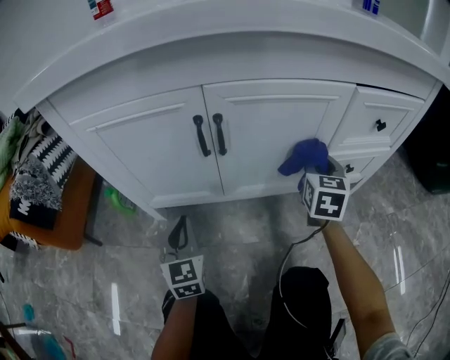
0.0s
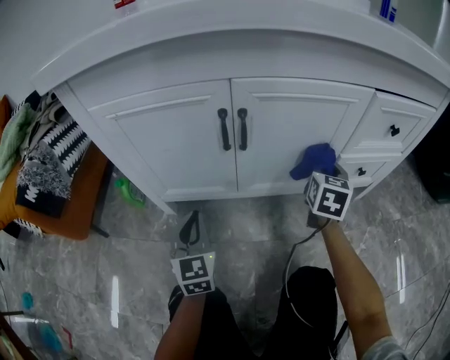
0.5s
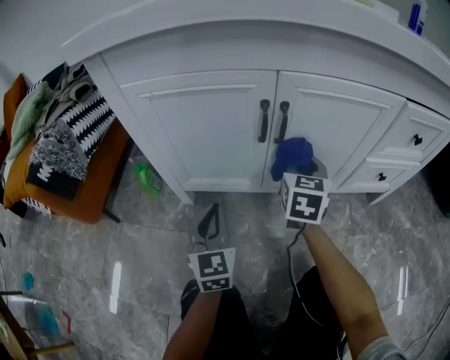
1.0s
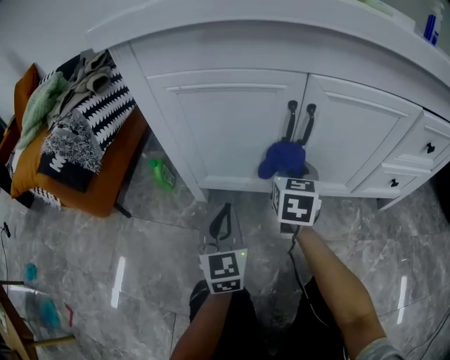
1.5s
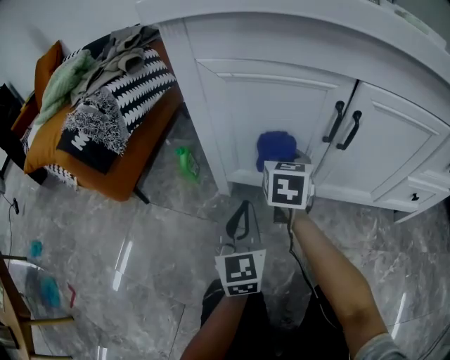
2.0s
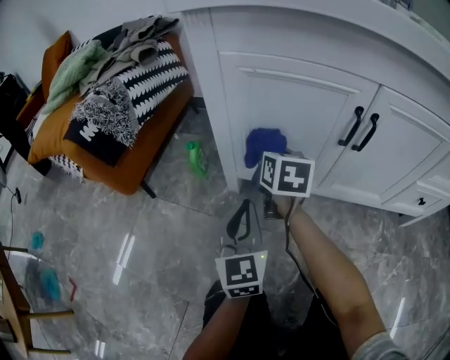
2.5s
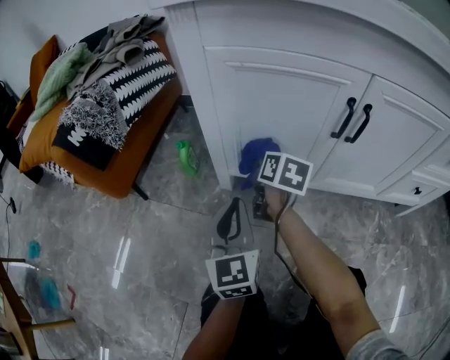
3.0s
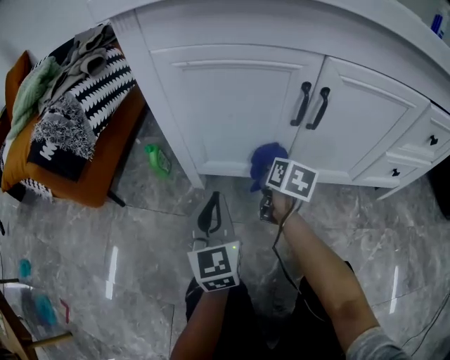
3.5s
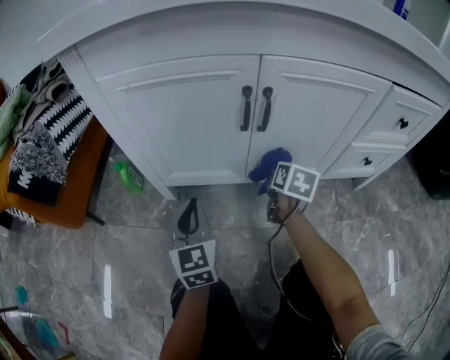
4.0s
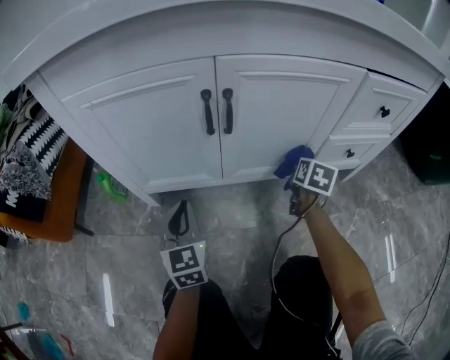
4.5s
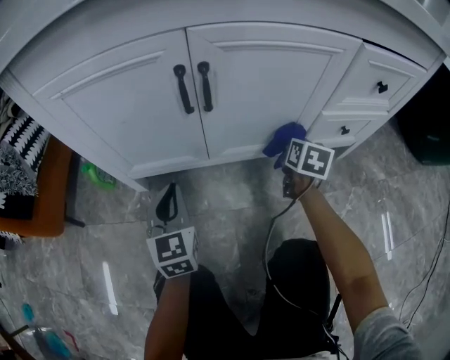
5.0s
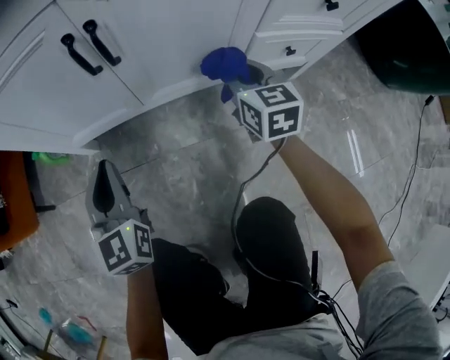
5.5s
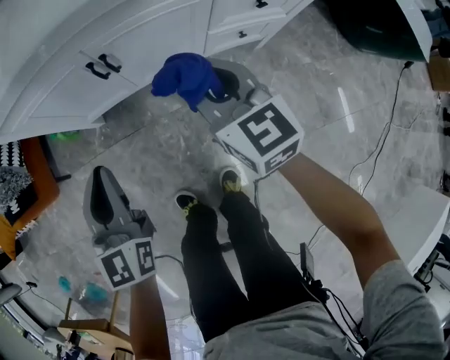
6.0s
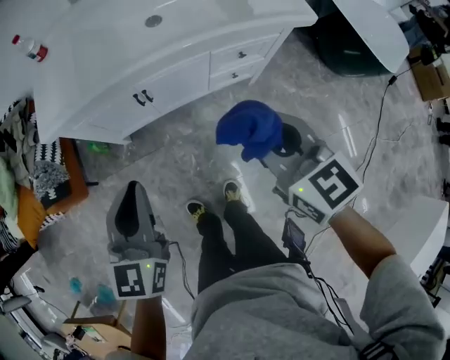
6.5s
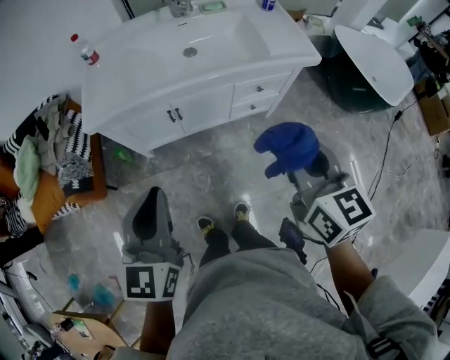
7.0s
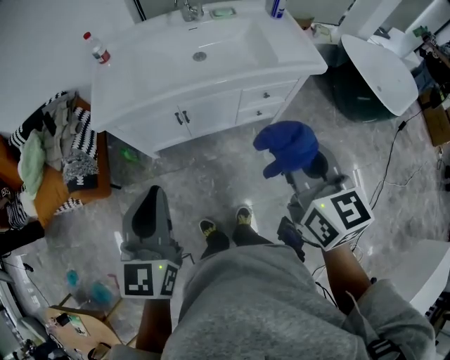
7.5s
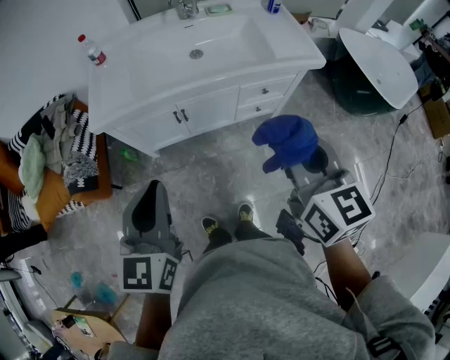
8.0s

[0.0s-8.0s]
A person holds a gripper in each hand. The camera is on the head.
0.0s to 2.0s: The left gripper travels to the left by about 10 cm. The right gripper is displaced to the left by roughly 35 cm, and turns by some 20 degrees.
2.0s to 4.0s: The right gripper travels to the right and downward by approximately 25 cm, and changes its angle by approximately 30 degrees; the left gripper changes place by roughly 5 cm.
4.0s to 6.0s: The right gripper is displaced upward and backward by some 40 cm, and swivels approximately 40 degrees; the left gripper moves upward, some 30 cm.
6.0s to 8.0s: The right gripper moves upward and backward, about 40 cm. Meanwhile the left gripper moves upward, roughly 35 cm.

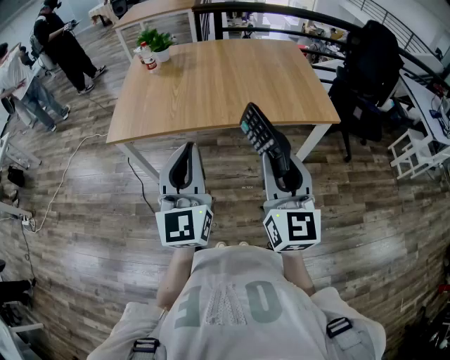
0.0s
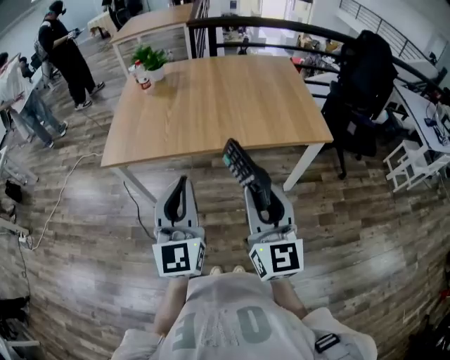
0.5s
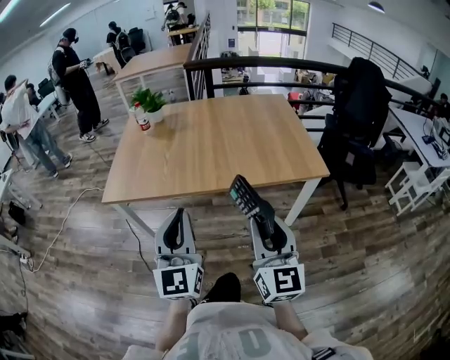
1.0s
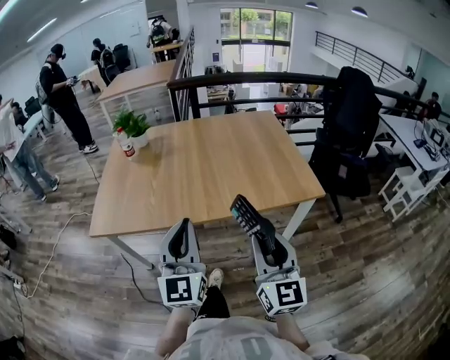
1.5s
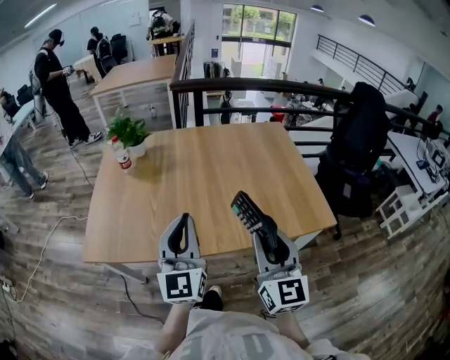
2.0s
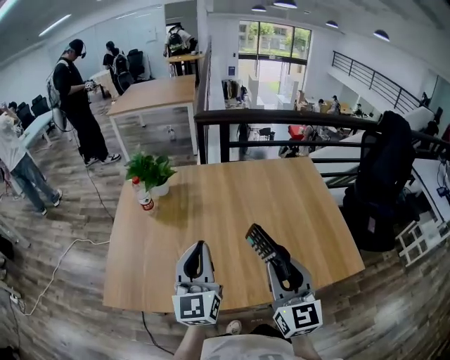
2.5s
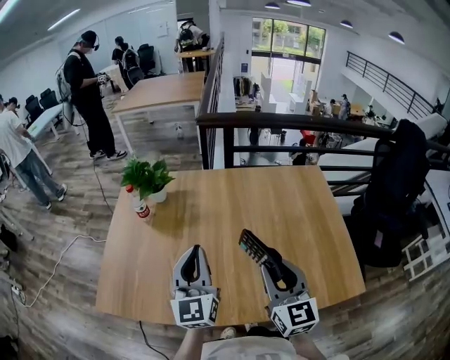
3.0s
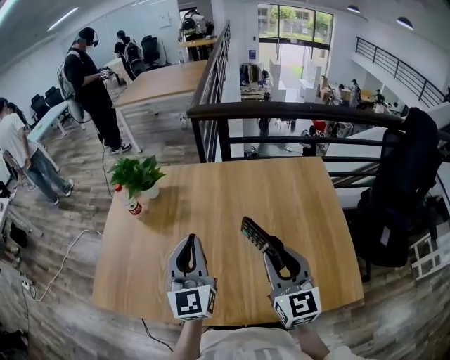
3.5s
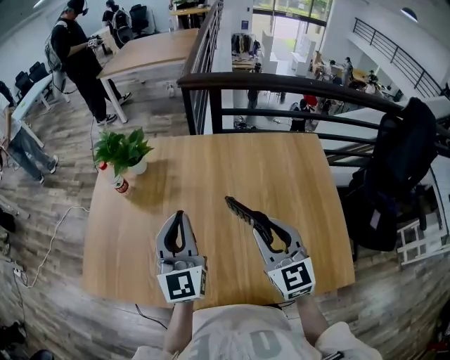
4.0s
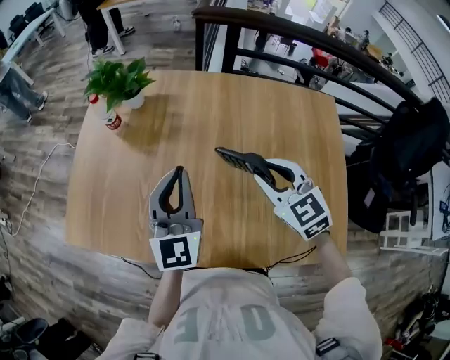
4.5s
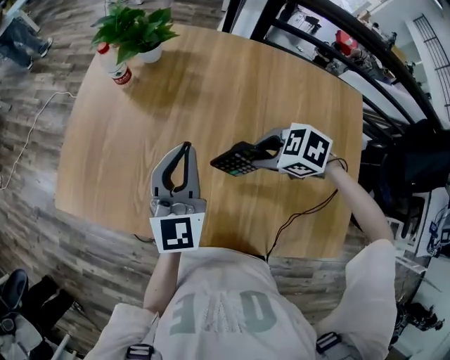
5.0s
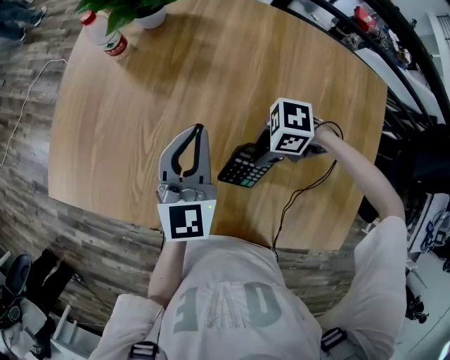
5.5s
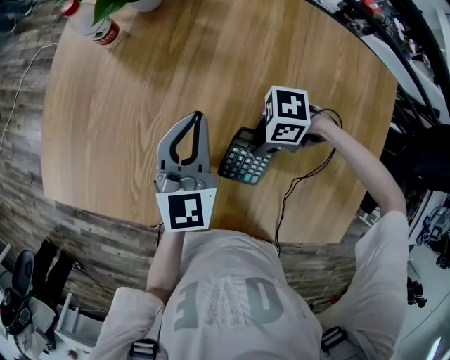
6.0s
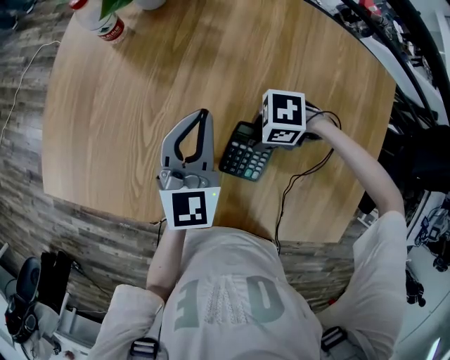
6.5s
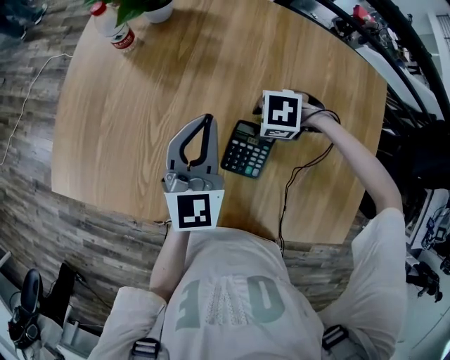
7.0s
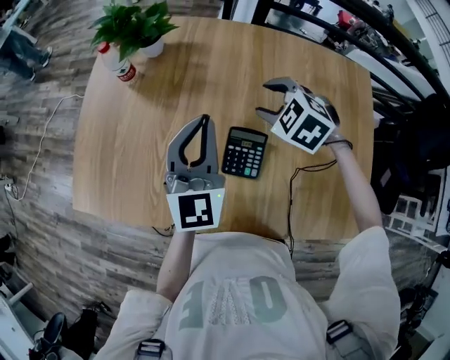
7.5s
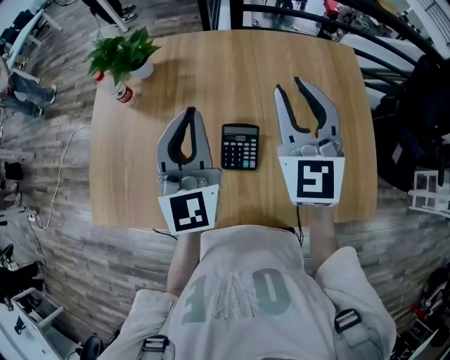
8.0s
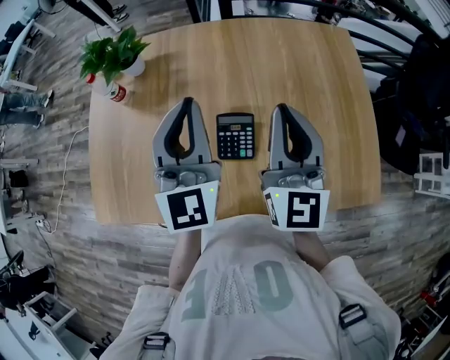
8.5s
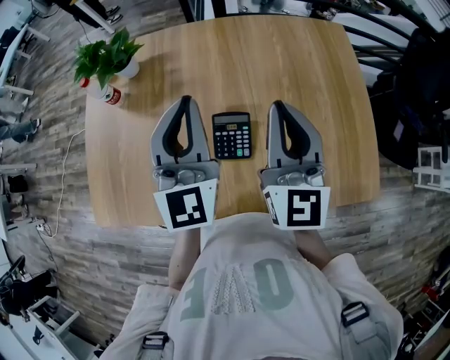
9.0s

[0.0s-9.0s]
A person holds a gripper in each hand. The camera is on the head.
0.0s to 2.0s: Both grippers travel together forward, roughly 30 cm.
2.0s to 4.5s: Both grippers travel together forward, roughly 30 cm. The right gripper points its fingers roughly 40 degrees further downward.
4.5s to 7.0s: The left gripper heads downward, covering approximately 10 cm. Meanwhile the right gripper goes some 20 cm downward, points its fingers about 40 degrees further downward, and opens.
7.0s to 9.0s: The right gripper heads upward, covering approximately 30 cm, angles its fingers upward, by approximately 80 degrees, and closes its fingers. The left gripper goes about 15 cm upward.

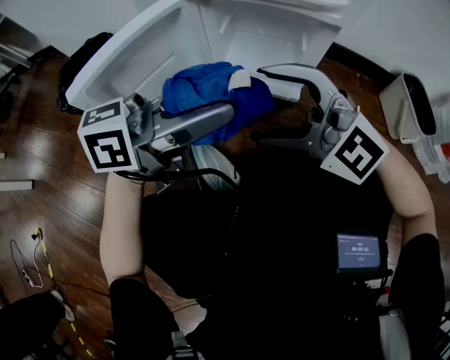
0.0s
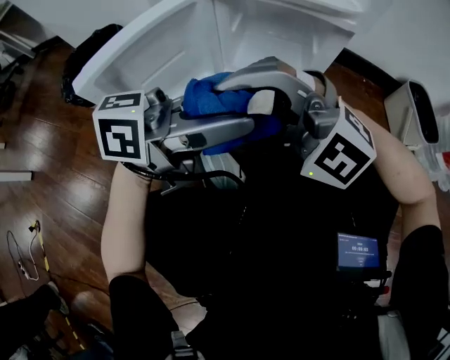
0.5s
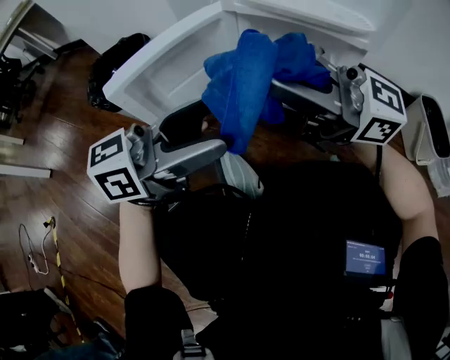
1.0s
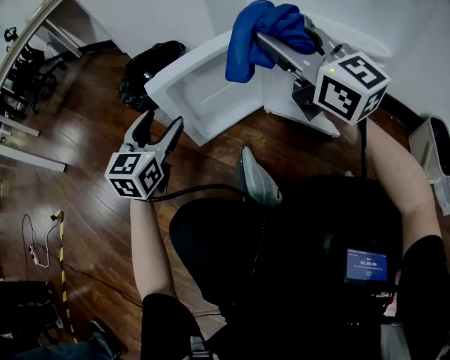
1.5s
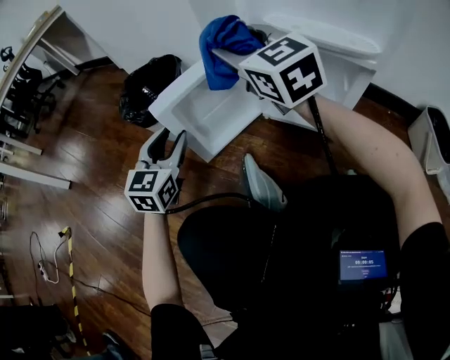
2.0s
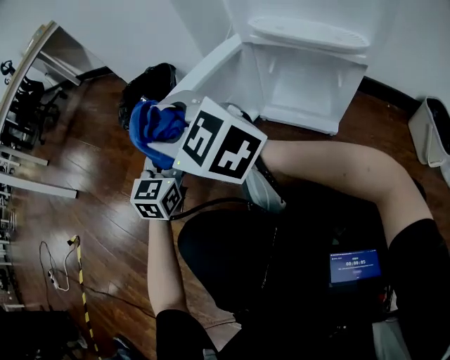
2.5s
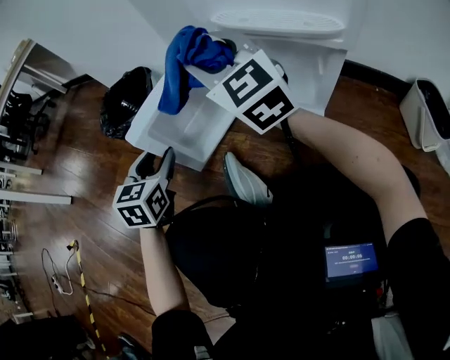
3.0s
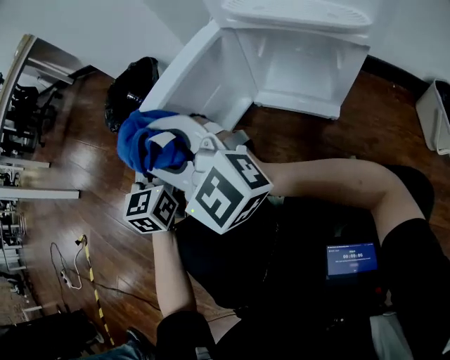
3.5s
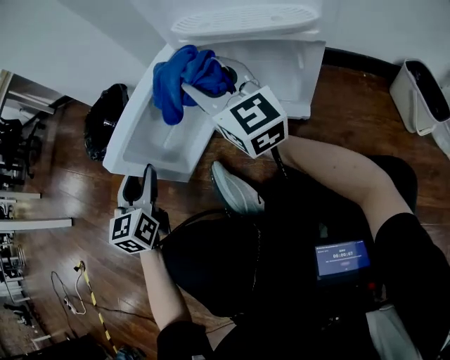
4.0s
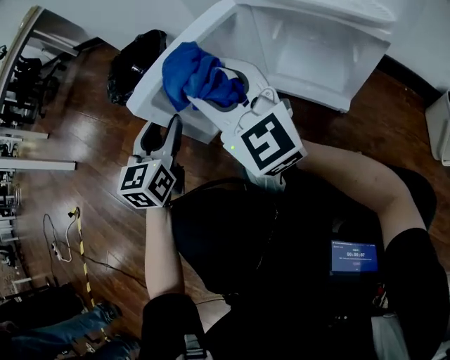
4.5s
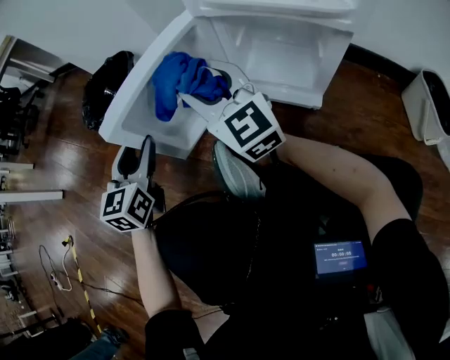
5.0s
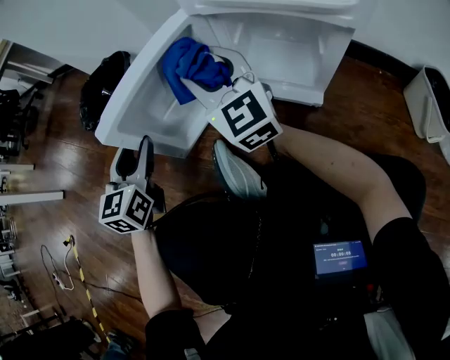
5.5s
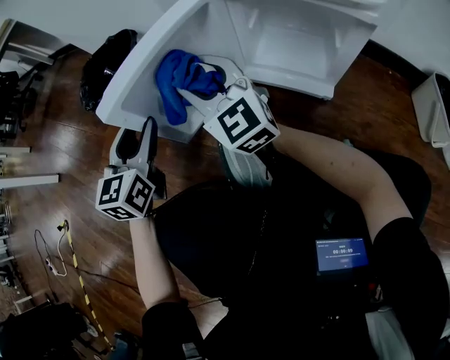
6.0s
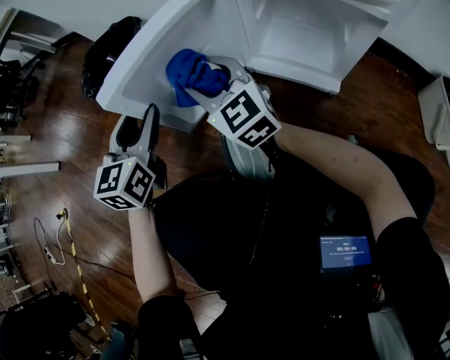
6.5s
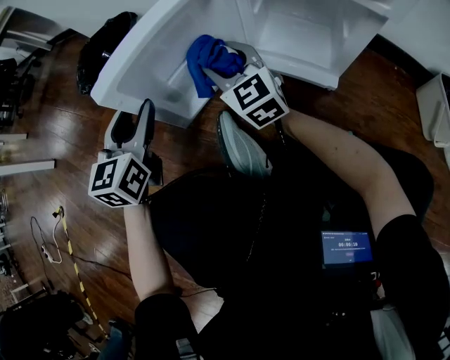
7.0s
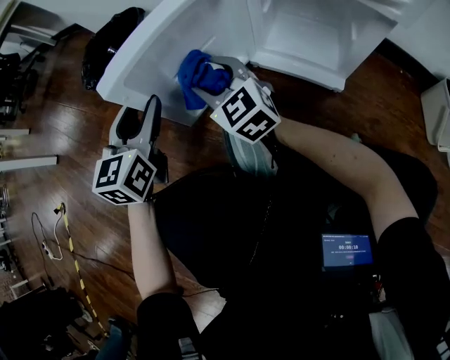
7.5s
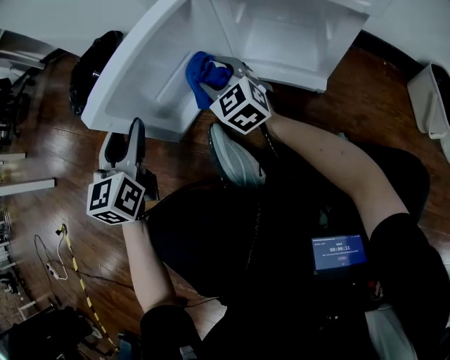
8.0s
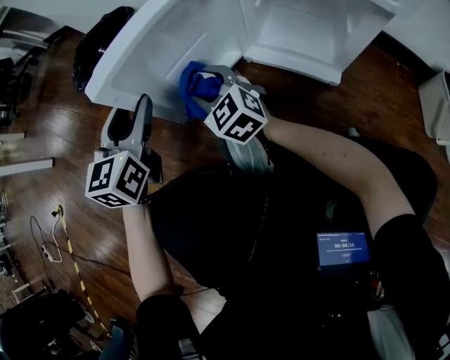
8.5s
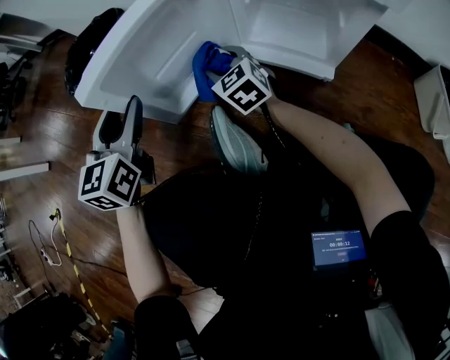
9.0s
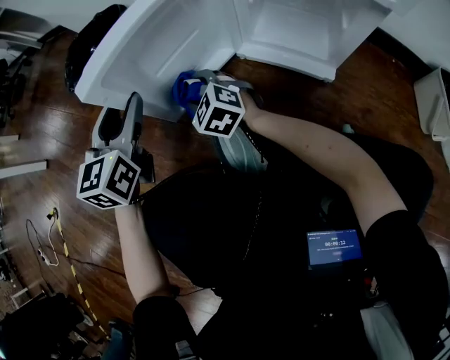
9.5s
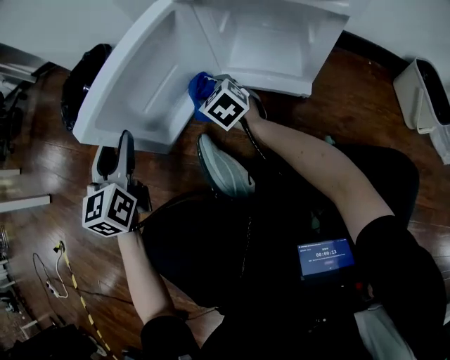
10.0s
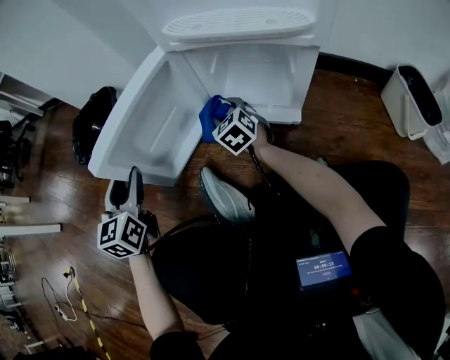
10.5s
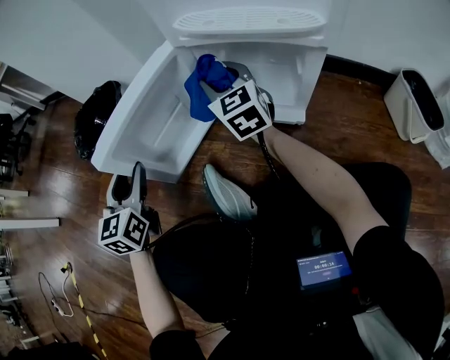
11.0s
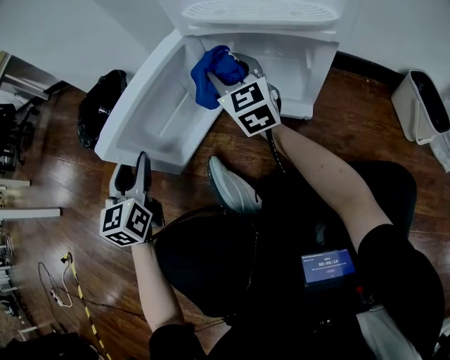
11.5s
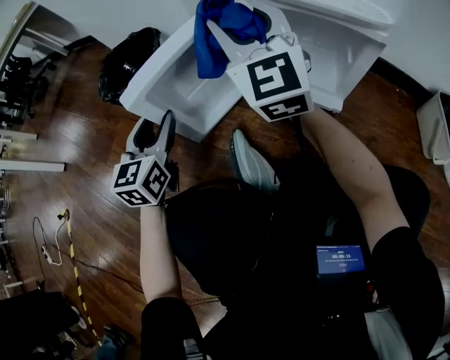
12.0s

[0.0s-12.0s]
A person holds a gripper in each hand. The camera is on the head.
0.0s to 2.0s: The left gripper shifts by about 30 cm, swivels approximately 70 degrees, and opens, then closes again. Meanwhile the right gripper changes place by about 25 cm, rotates about 40 degrees, and closes its fingers.
2.0s to 4.0s: The right gripper swings left and right, approximately 25 cm each way, with 3 reversals, and swivels approximately 20 degrees.
4.0s to 6.0s: The right gripper moves left and right over some 10 cm, changing direction 2 times, and swivels approximately 20 degrees.
6.0s to 8.0s: The right gripper moves downward, some 10 cm, and swivels roughly 20 degrees.
8.0s to 10.0s: The right gripper swings left and right, some 10 cm each way, with 3 reversals, and changes its angle by some 20 degrees.
10.0s to 12.0s: The right gripper heads upward, covering about 30 cm, and points its fingers roughly 50 degrees further upward.
